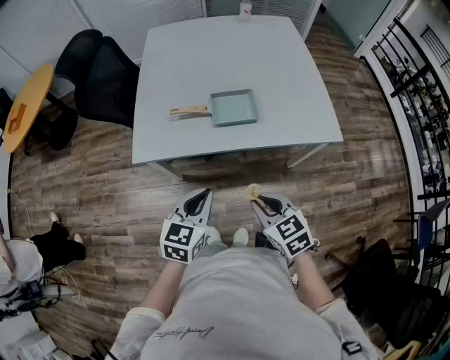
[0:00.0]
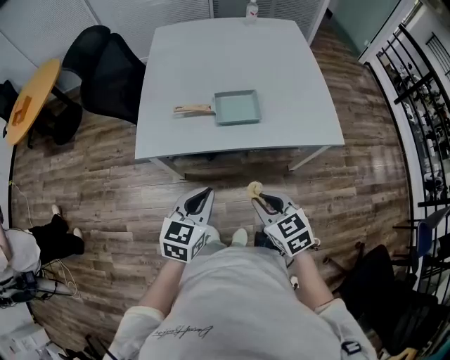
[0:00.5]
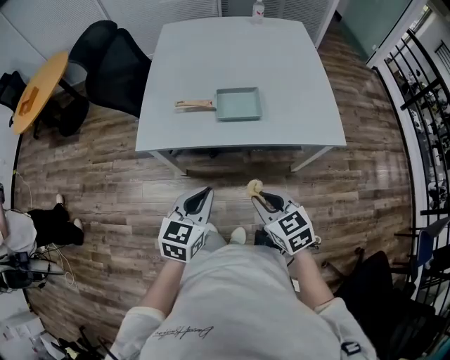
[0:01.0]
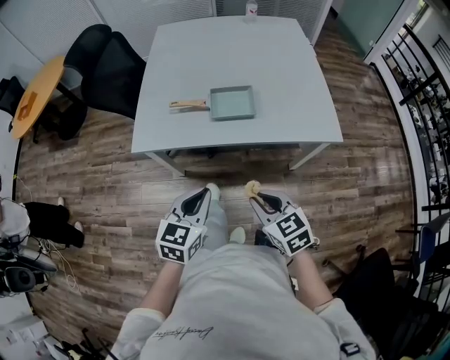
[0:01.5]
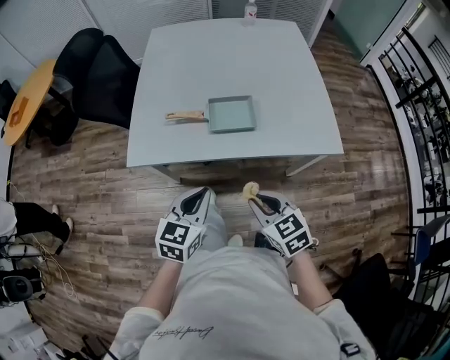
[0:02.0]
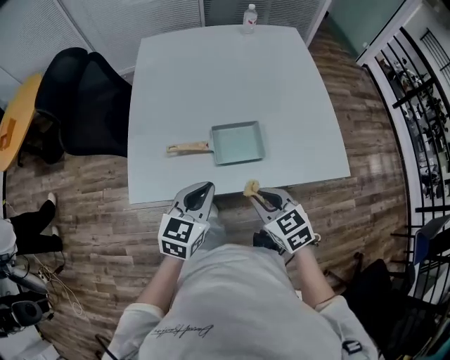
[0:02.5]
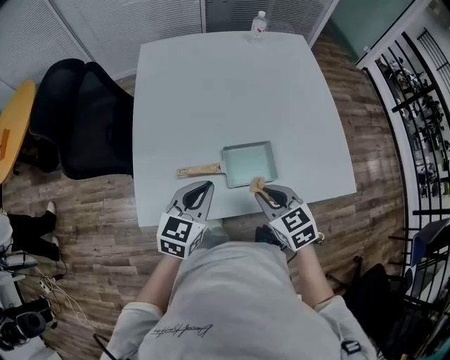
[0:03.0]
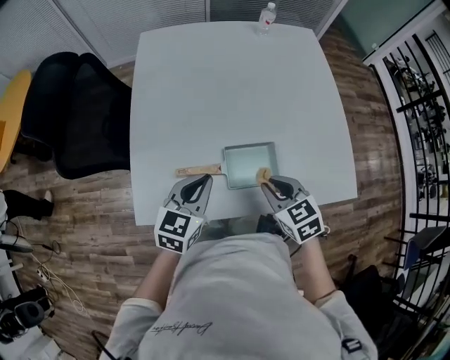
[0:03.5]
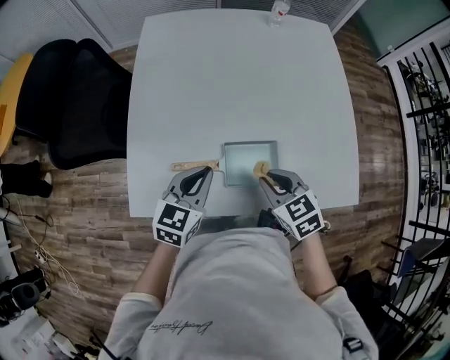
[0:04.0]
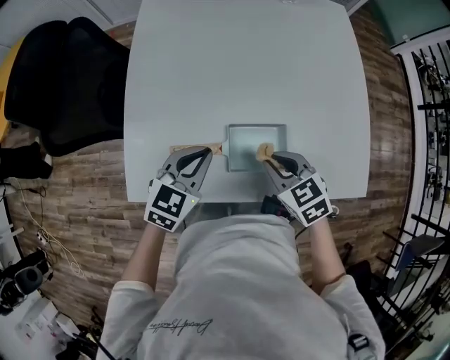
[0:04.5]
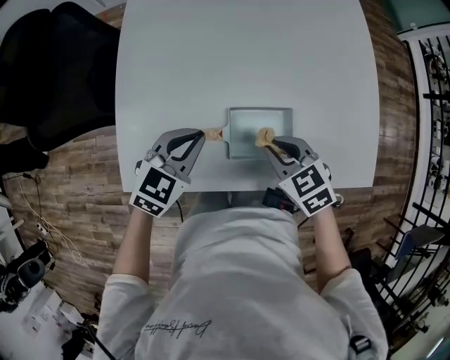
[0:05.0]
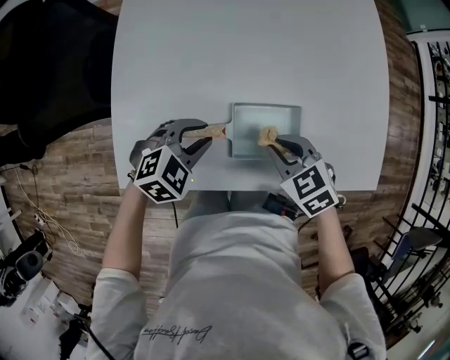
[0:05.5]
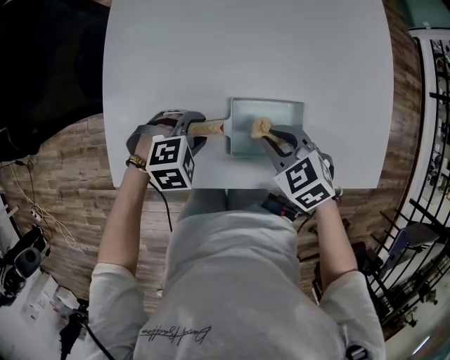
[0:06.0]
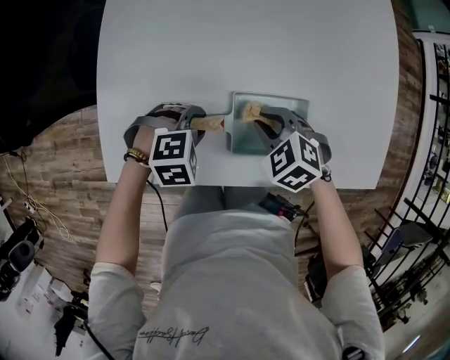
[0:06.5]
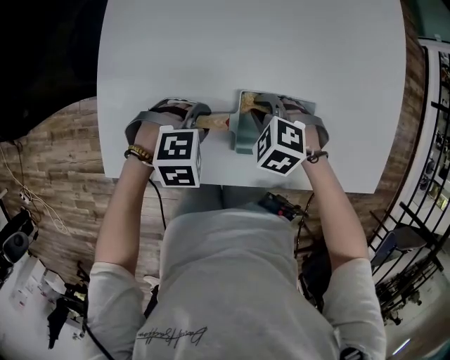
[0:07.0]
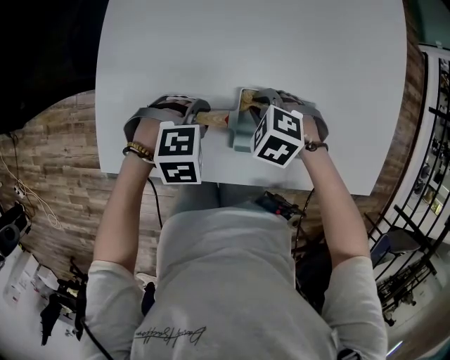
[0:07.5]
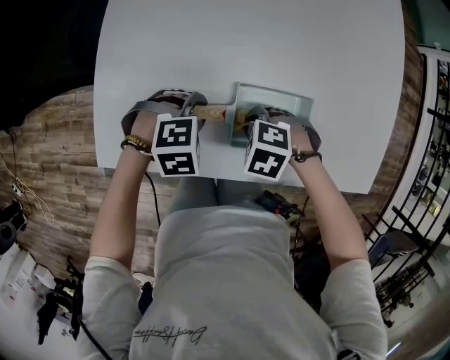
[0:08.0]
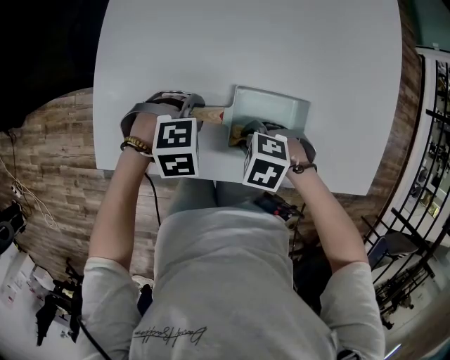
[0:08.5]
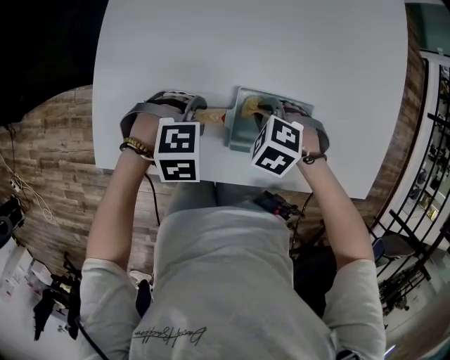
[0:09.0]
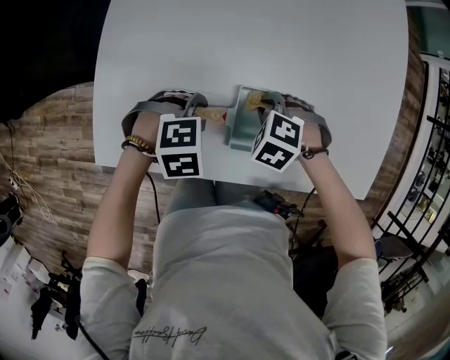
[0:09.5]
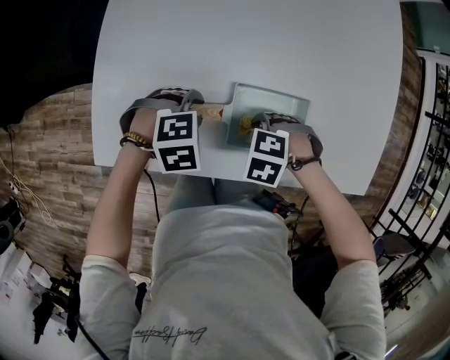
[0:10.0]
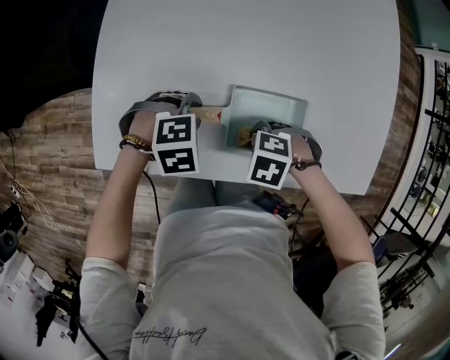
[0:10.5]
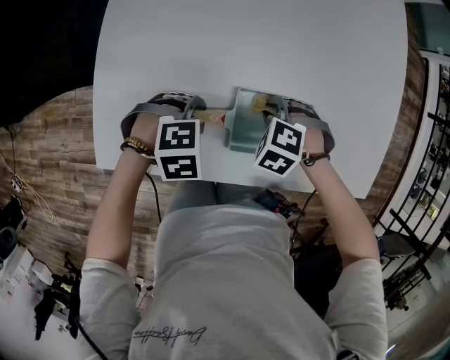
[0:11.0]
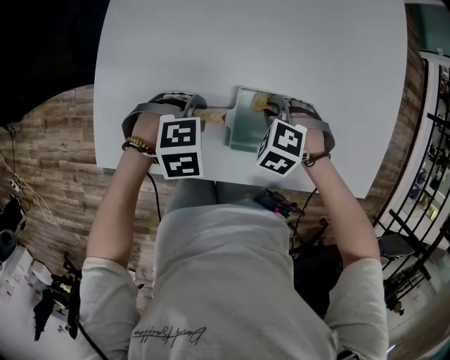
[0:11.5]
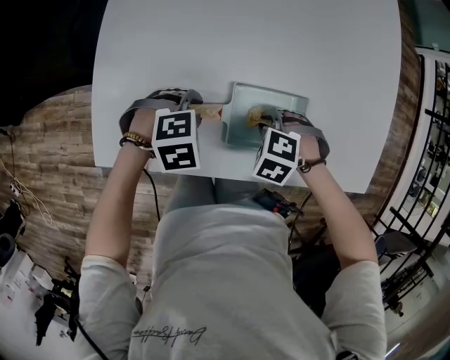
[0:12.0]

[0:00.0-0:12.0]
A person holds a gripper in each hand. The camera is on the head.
0:02.0 to 0:04.0: The left gripper moves approximately 25 cm.
0:04.0 to 0:06.0: The left gripper travels downward by about 15 cm, tips its fingers downward by some 40 degrees, and opens its fingers.

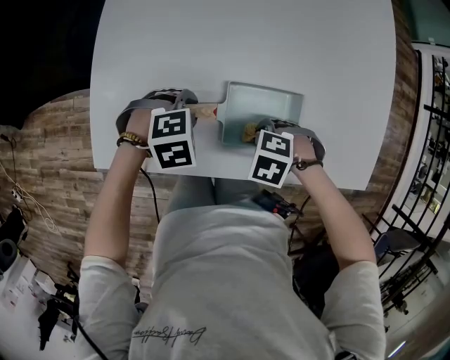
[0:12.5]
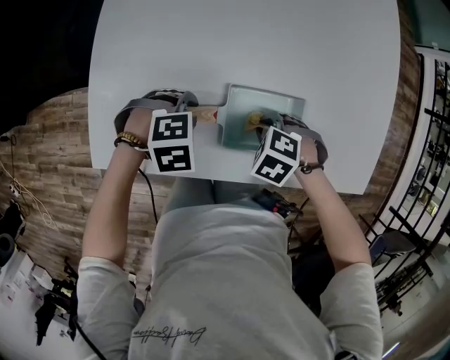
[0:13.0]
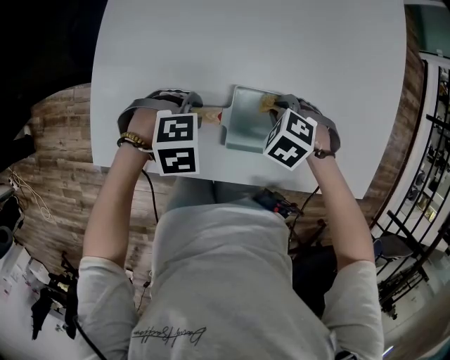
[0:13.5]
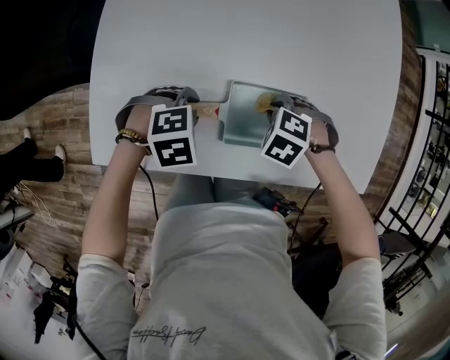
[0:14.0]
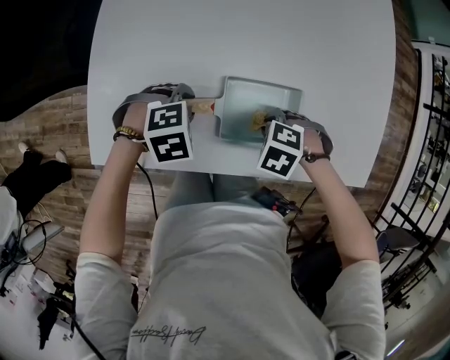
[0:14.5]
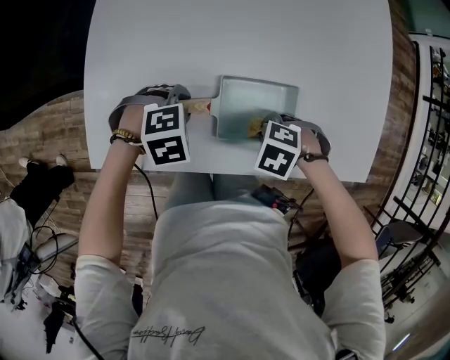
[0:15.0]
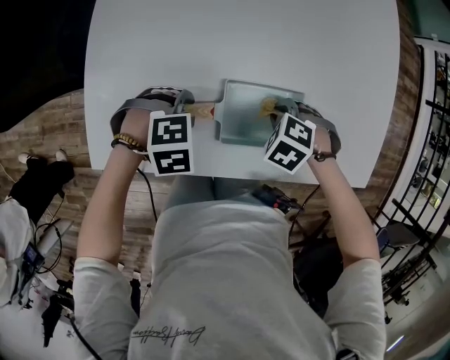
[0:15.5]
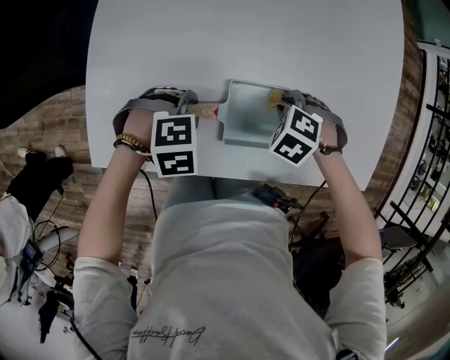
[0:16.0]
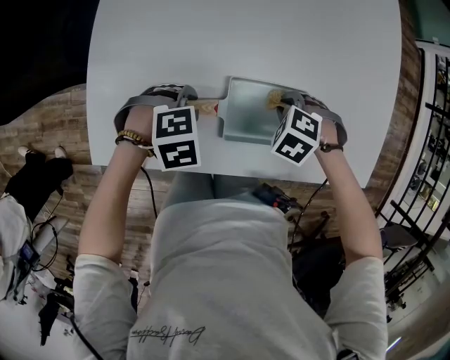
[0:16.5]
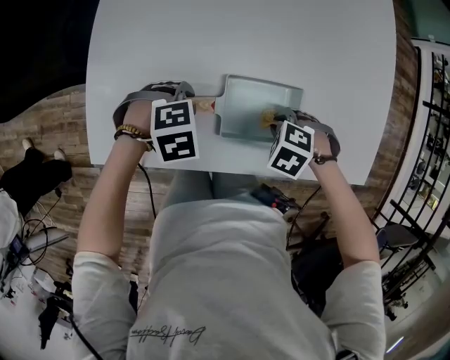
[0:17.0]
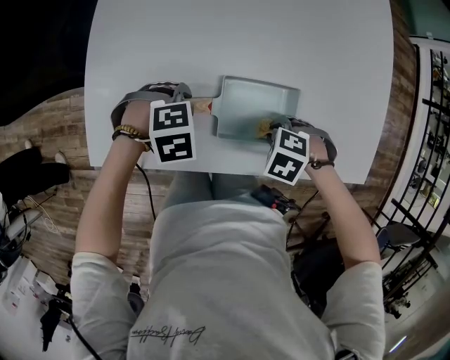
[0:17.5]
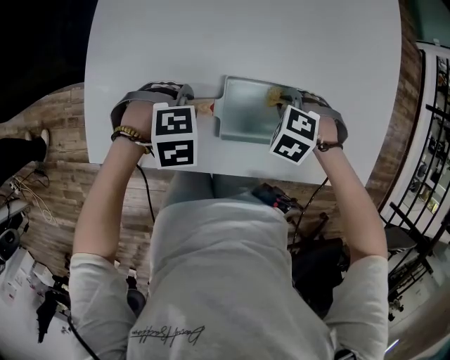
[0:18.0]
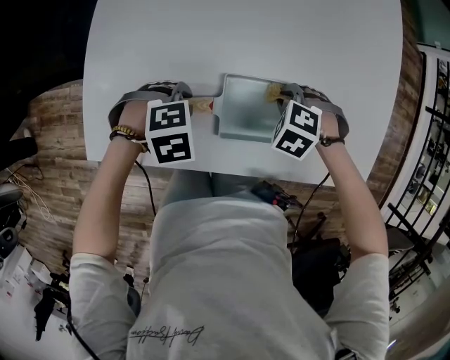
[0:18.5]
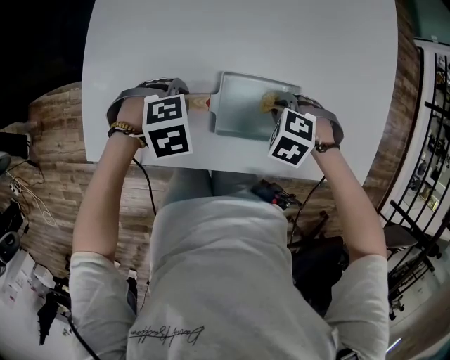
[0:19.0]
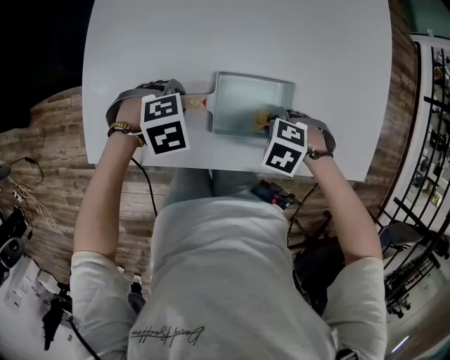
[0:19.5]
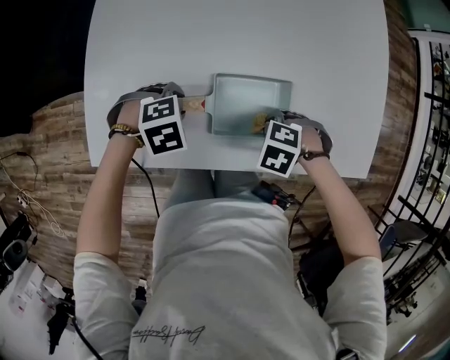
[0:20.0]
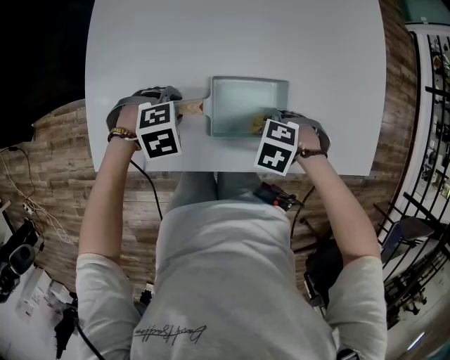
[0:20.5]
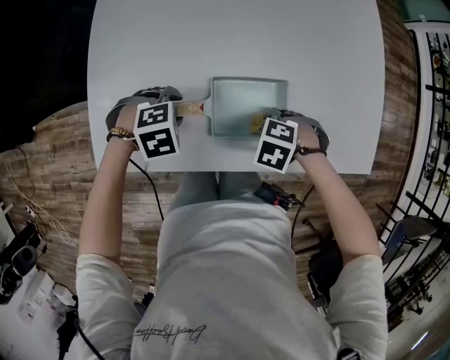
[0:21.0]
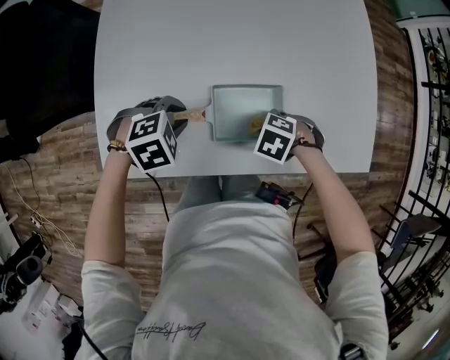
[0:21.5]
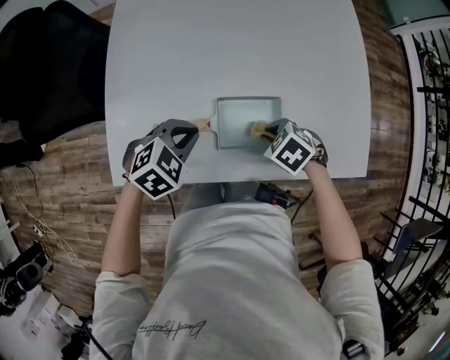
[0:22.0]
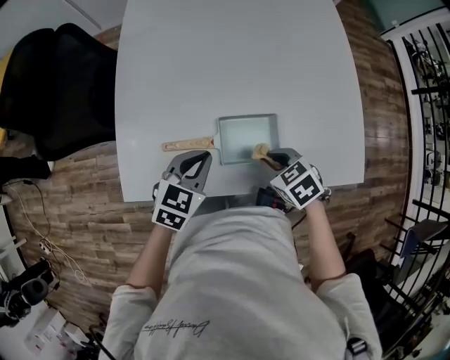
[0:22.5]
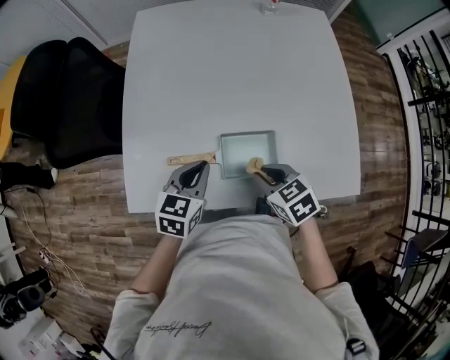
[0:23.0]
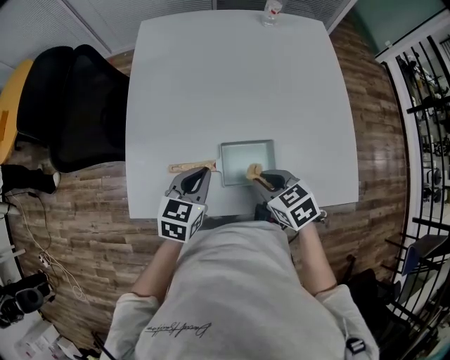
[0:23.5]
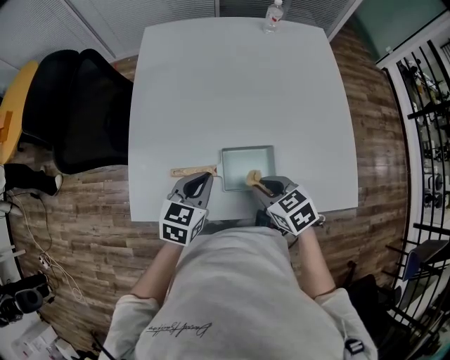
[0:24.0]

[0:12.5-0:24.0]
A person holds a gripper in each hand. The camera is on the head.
0:20.0 to 0:22.0: The left gripper heads upward, covering about 10 cm, changes its angle by roughly 30 degrees, and closes its fingers.
0:22.0 to 0:24.0: The left gripper heads upward, covering roughly 5 cm, and changes its angle by roughly 40 degrees.

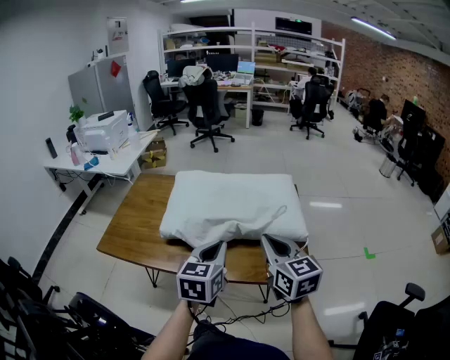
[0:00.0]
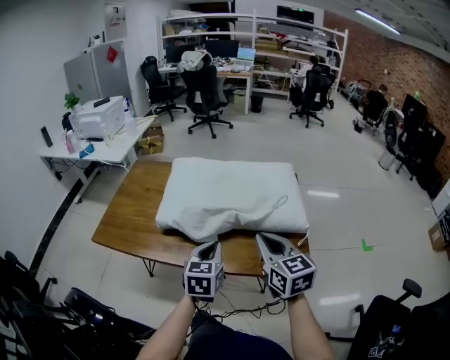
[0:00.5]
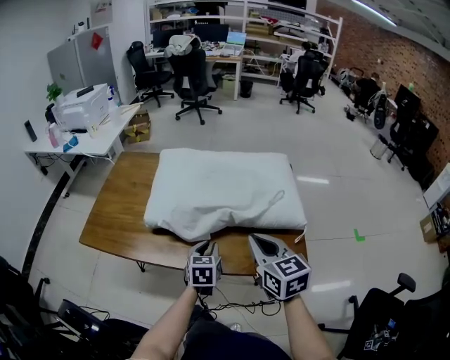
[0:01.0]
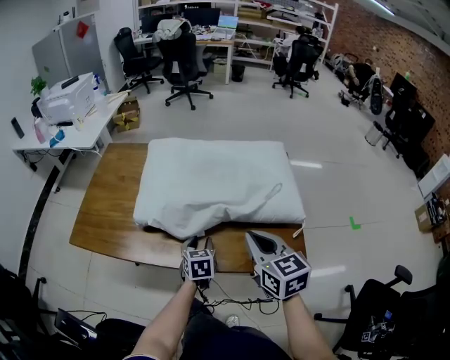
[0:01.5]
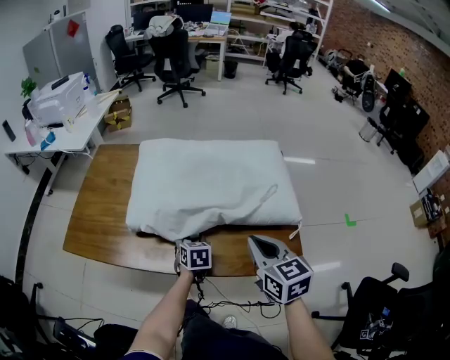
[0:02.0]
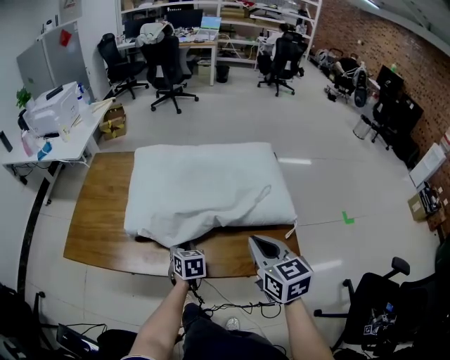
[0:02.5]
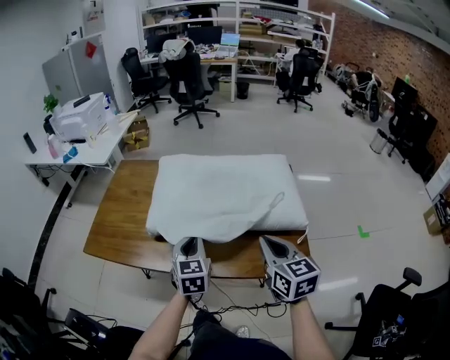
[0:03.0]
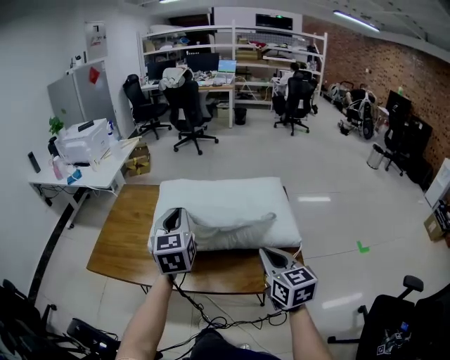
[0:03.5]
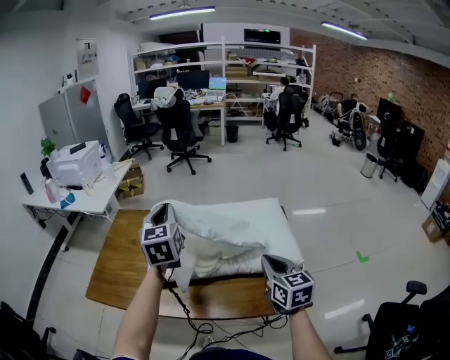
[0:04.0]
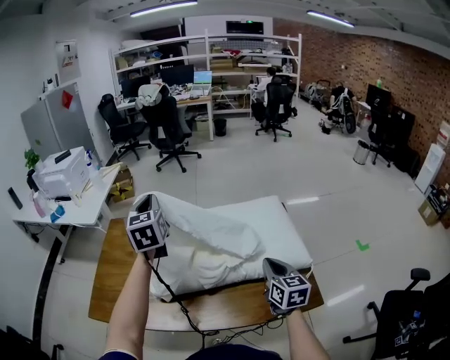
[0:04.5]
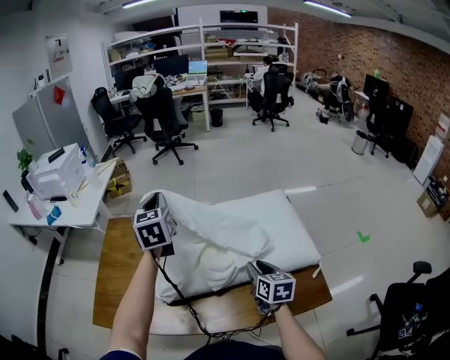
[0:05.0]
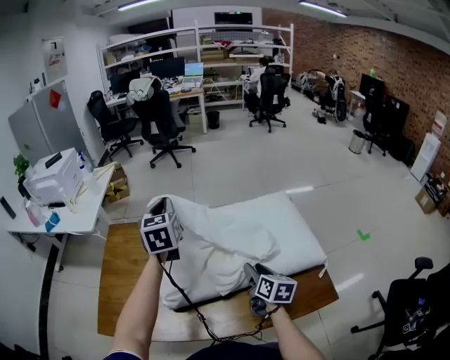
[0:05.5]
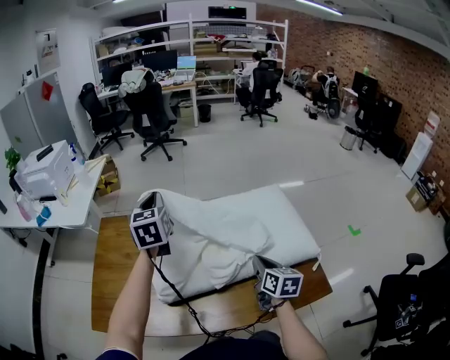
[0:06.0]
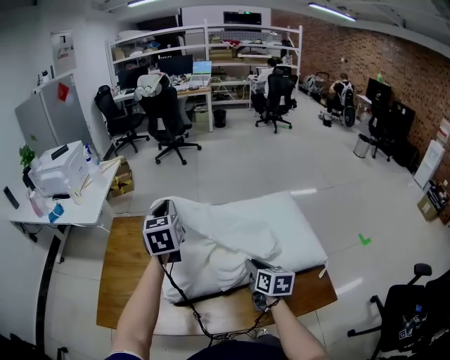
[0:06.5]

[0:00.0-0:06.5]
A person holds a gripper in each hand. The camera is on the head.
0:00.0 to 0:02.0: The right gripper travels downward by approximately 10 cm; the left gripper is displaced downward and forward by some 30 cm, changes its angle by some 30 degrees, and opens.
0:02.0 to 0:04.5: The left gripper travels upward and forward by roughly 40 cm, tilts its fingers roughly 40 degrees upward, and closes up; the right gripper is displaced forward by about 10 cm.
0:04.5 to 0:06.5: The left gripper heads downward, covering approximately 5 cm. The right gripper shifts some 15 cm to the left, downward and forward, and opens.
